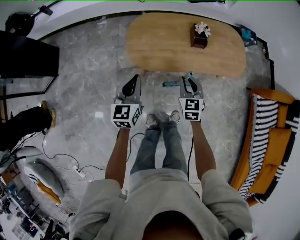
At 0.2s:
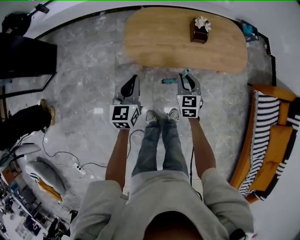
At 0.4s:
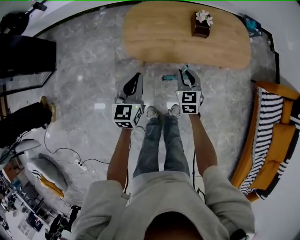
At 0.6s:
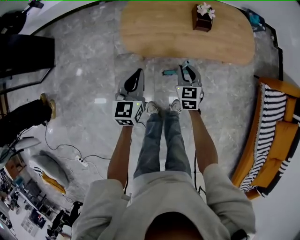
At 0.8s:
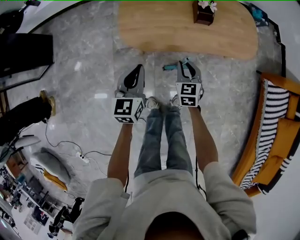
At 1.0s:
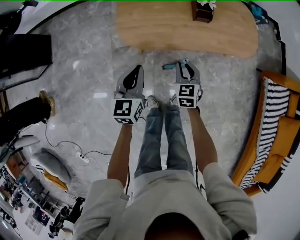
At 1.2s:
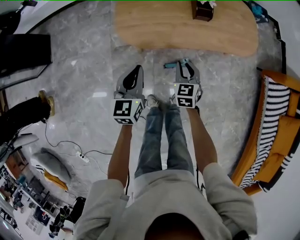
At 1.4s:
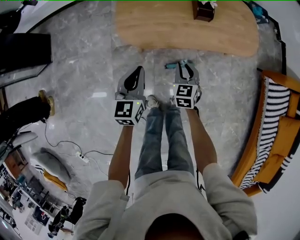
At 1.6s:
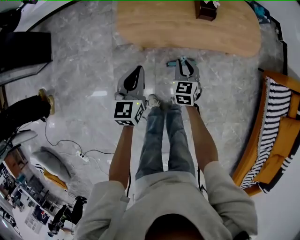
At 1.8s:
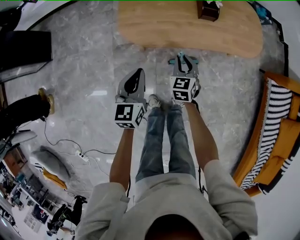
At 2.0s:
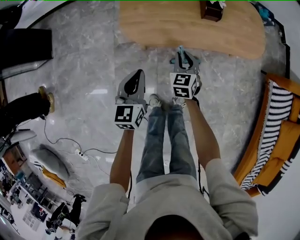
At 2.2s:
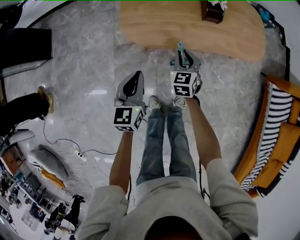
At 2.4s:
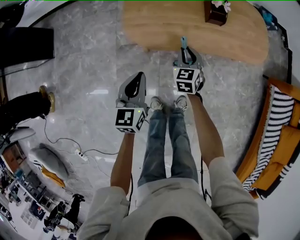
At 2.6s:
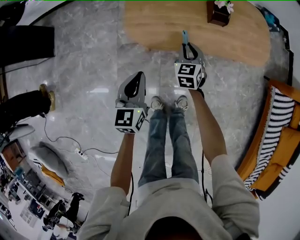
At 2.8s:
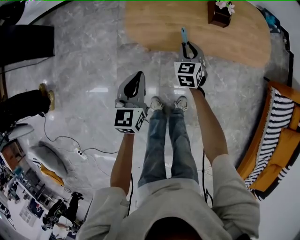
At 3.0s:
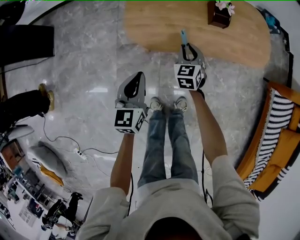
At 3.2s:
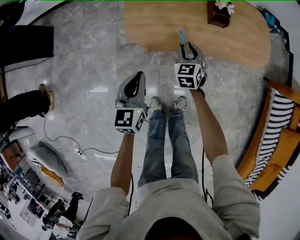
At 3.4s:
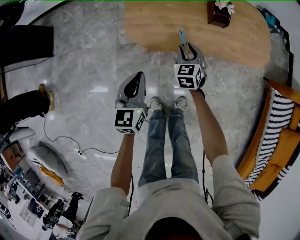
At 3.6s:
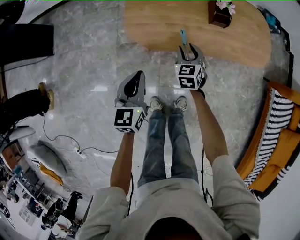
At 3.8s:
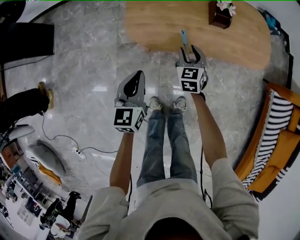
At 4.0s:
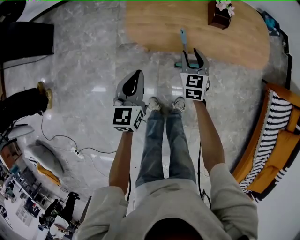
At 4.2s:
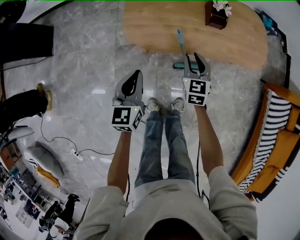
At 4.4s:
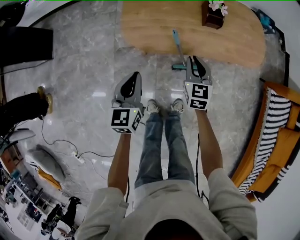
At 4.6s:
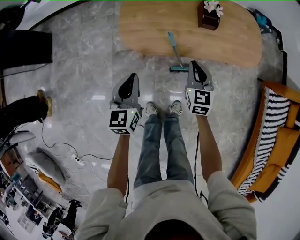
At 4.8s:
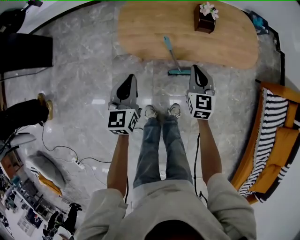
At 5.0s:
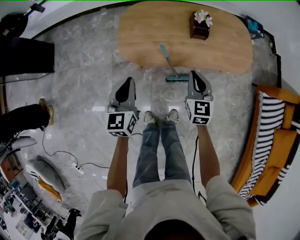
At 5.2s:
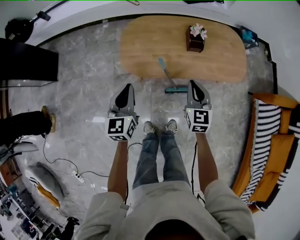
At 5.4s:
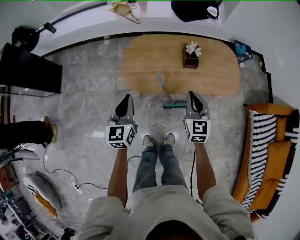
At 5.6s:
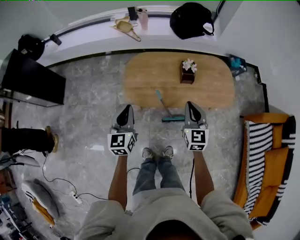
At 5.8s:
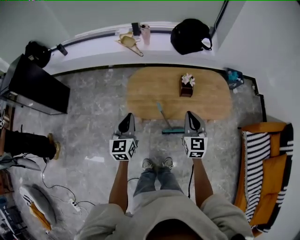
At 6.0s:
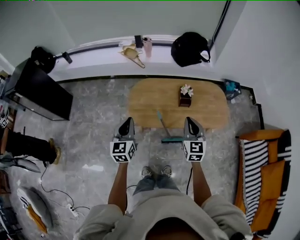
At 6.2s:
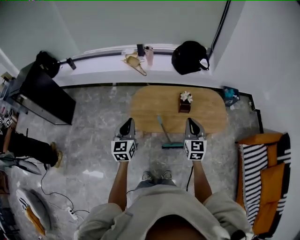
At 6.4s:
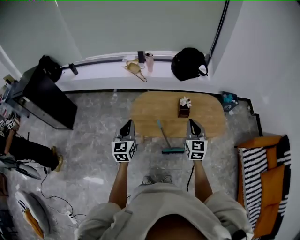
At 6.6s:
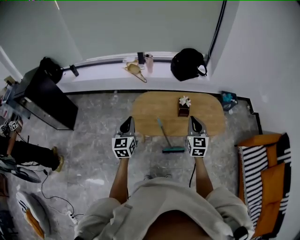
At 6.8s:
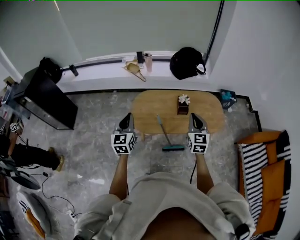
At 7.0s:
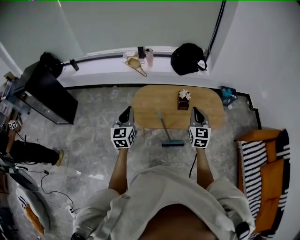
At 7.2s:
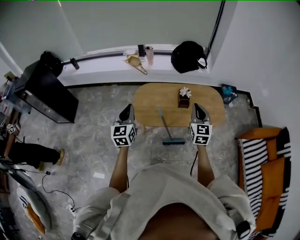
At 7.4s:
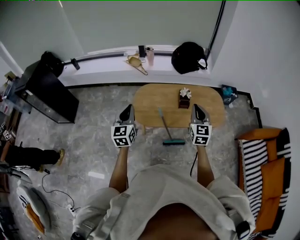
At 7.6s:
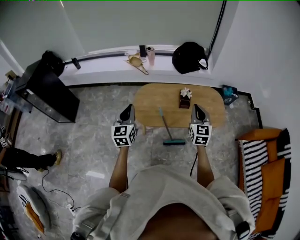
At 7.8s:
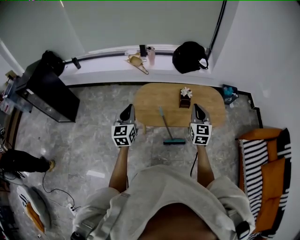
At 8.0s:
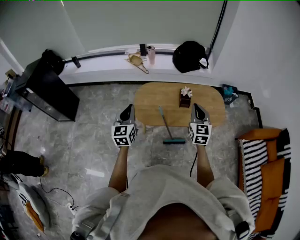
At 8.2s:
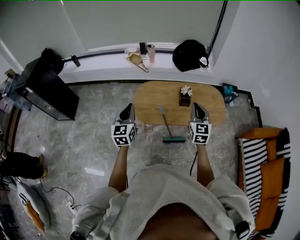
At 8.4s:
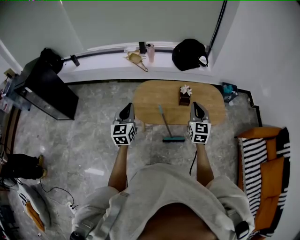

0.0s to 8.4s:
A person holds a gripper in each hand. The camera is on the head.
0.0s to 1.4s: The left gripper is displaced downward and to the right by about 10 cm, while the right gripper is displaced downward by some 10 cm.
1.4s to 2.8s: The right gripper travels forward by some 10 cm.
2.8s to 4.2s: The right gripper moves roughly 5 cm.
4.2s to 5.6s: Both grippers travel together upward, roughly 20 cm. The right gripper closes up.
5.6s to 7.0s: The grippers both shift upward by some 15 cm.
7.0s to 8.4s: Both grippers stay put.

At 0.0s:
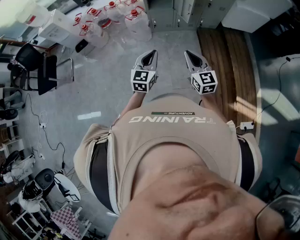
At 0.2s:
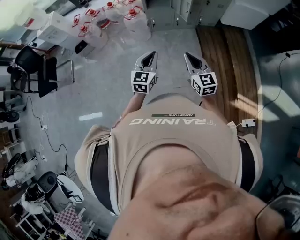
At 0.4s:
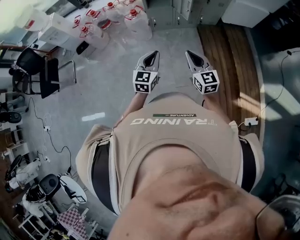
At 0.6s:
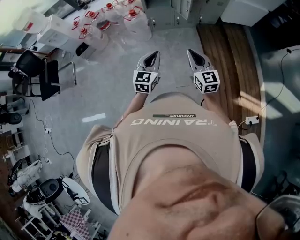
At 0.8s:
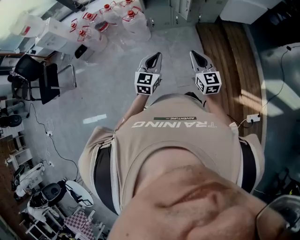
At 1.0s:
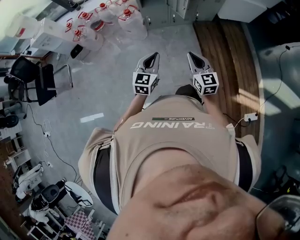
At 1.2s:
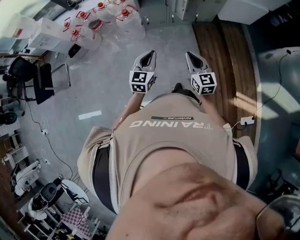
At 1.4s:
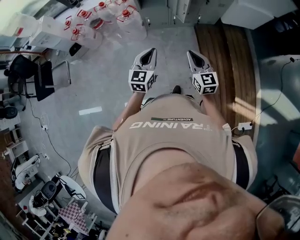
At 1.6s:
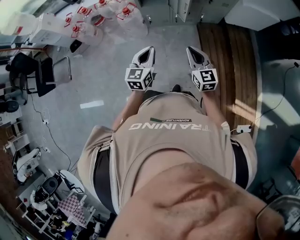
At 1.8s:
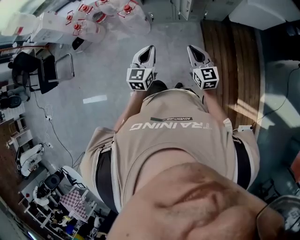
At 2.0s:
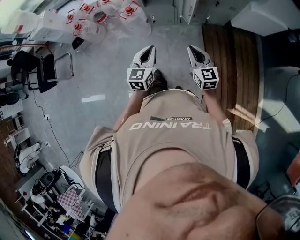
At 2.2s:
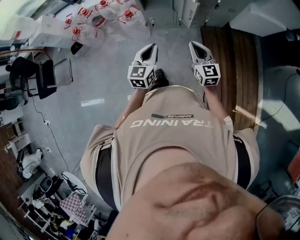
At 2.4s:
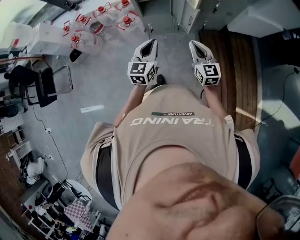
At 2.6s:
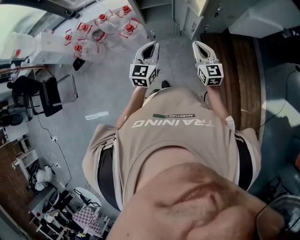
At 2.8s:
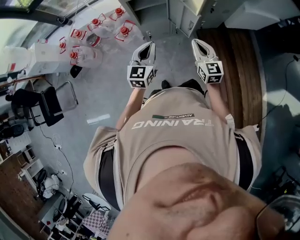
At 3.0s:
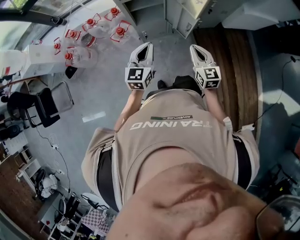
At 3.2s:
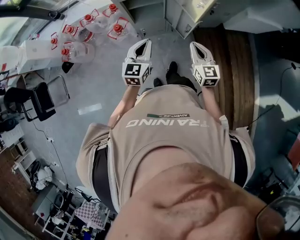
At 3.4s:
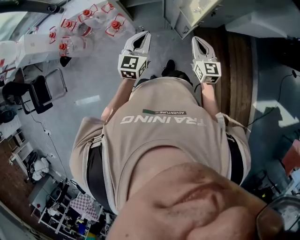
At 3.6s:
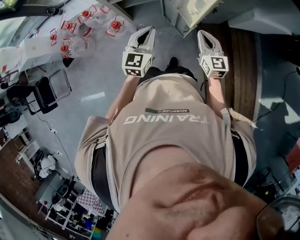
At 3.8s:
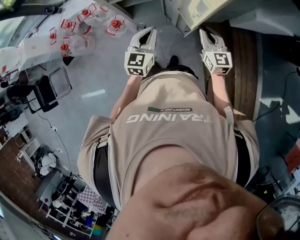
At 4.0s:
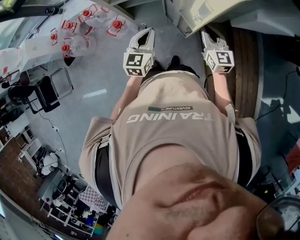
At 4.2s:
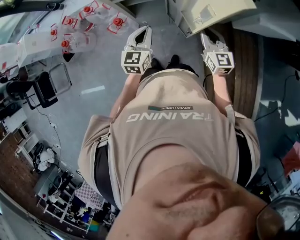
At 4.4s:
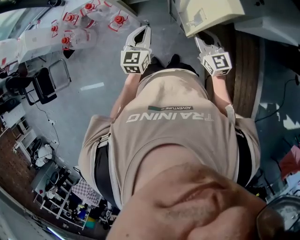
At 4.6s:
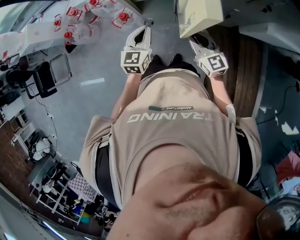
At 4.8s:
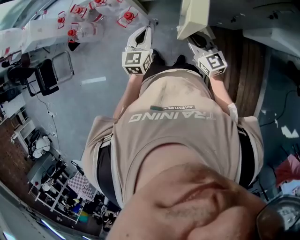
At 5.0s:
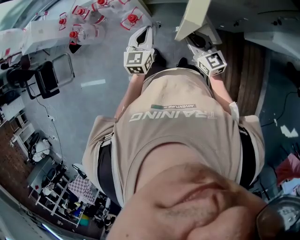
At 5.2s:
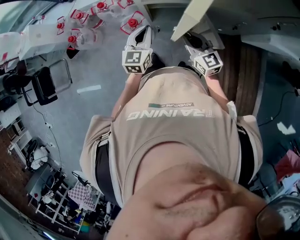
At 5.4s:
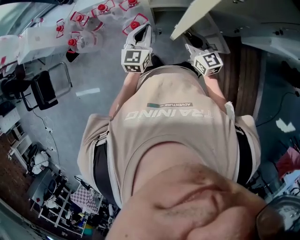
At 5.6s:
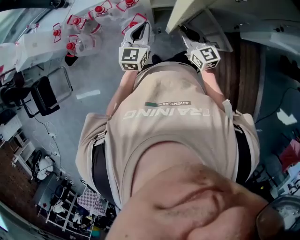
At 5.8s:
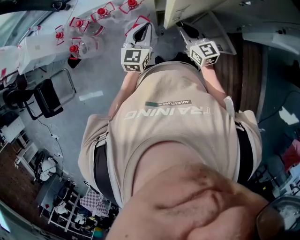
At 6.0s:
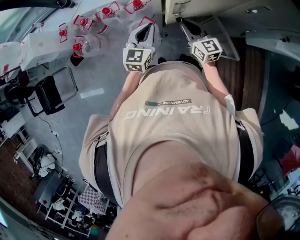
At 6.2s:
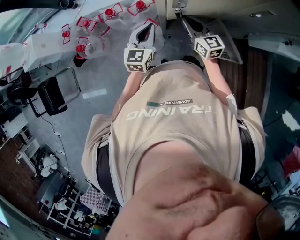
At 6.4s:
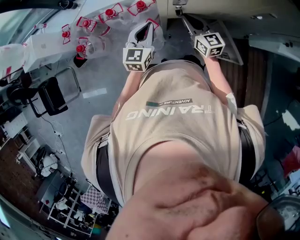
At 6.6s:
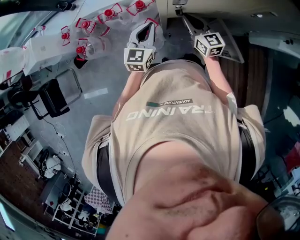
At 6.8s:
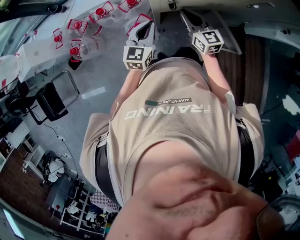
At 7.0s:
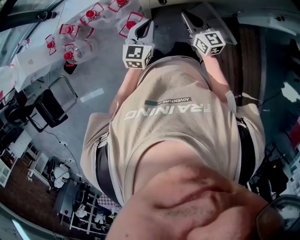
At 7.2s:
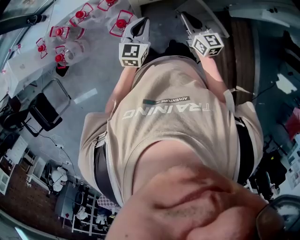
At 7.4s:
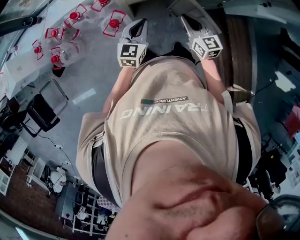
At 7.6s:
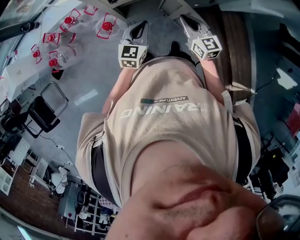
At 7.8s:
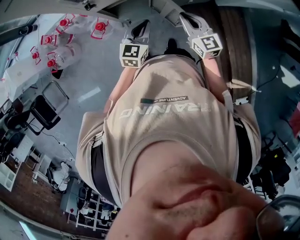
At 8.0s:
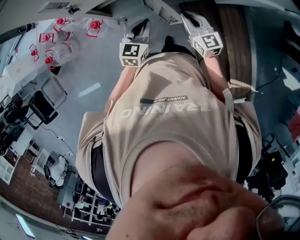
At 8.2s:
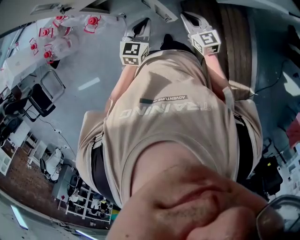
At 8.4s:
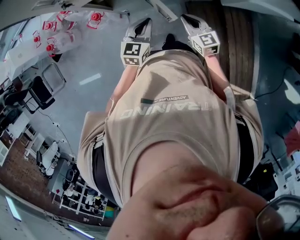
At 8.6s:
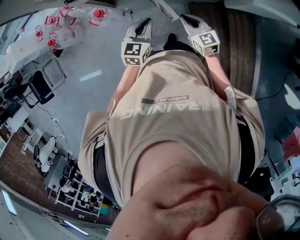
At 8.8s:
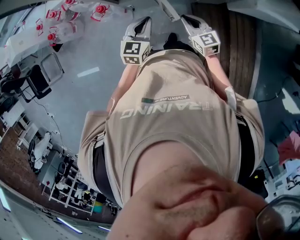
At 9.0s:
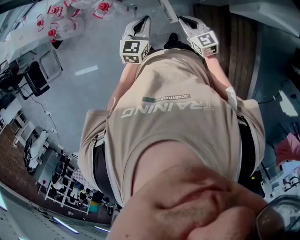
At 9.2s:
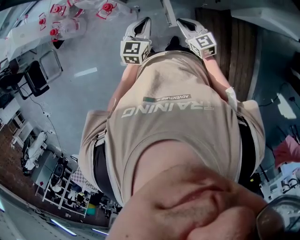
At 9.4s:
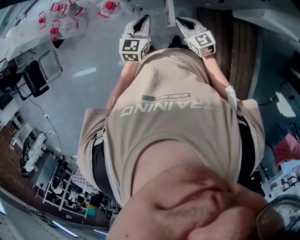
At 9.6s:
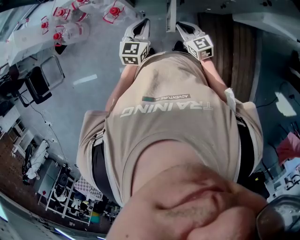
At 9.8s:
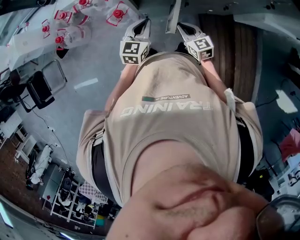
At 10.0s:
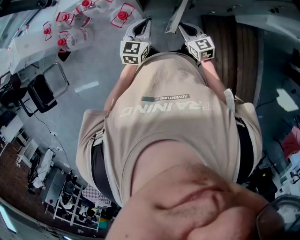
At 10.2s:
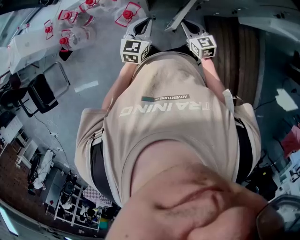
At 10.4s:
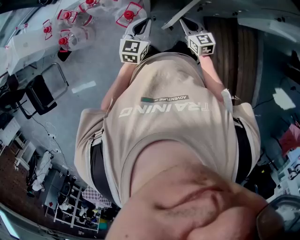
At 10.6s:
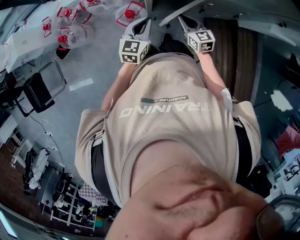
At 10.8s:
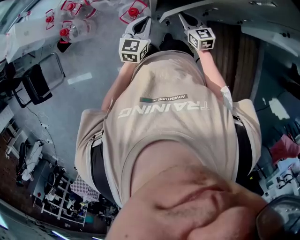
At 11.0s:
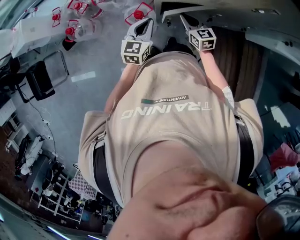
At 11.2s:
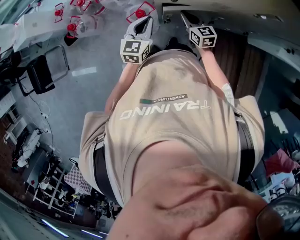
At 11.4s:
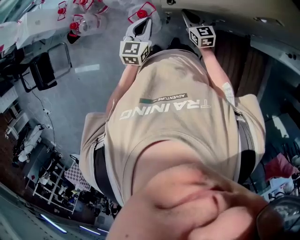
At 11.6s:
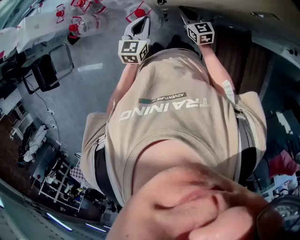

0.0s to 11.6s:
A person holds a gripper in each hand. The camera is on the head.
0.0s to 1.4s: The left gripper goes approximately 15 cm forward; the right gripper goes some 15 cm forward and to the right.
1.4s to 2.8s: Both grippers move forward, about 25 cm.
2.8s to 4.4s: Both grippers travel together forward, roughly 20 cm.
4.4s to 5.8s: Both grippers travel together to the left and forward, about 25 cm.
5.8s to 7.2s: The left gripper ends up some 5 cm from where it was, while the right gripper travels to the right by about 5 cm.
7.2s to 8.8s: The grippers both shift to the right by some 25 cm. The right gripper changes its angle by approximately 20 degrees.
8.8s to 10.2s: The grippers both shift to the left by about 25 cm.
10.2s to 11.6s: The left gripper shifts some 5 cm forward; the right gripper travels forward by some 15 cm.

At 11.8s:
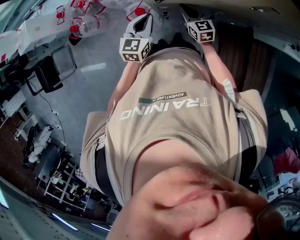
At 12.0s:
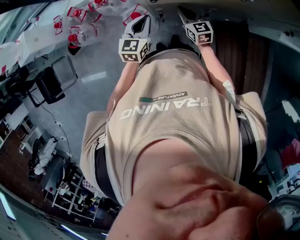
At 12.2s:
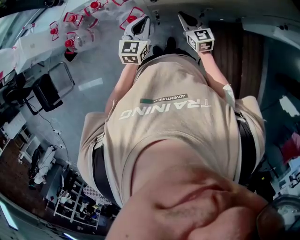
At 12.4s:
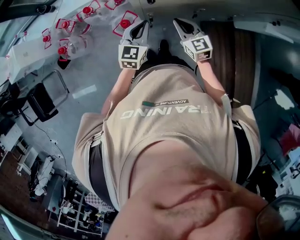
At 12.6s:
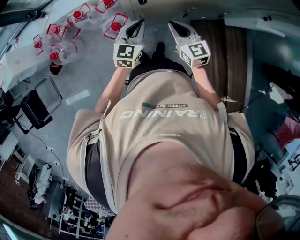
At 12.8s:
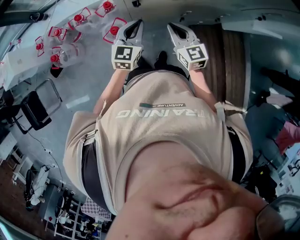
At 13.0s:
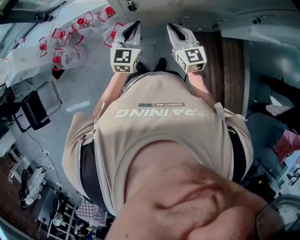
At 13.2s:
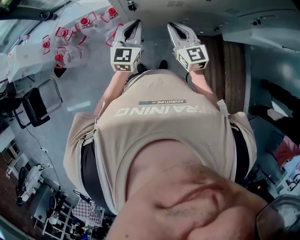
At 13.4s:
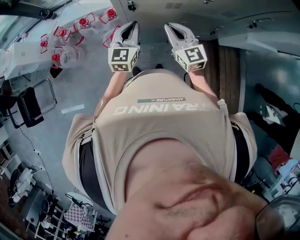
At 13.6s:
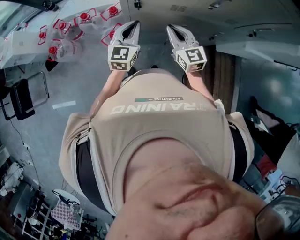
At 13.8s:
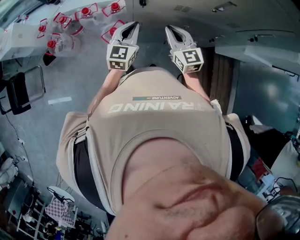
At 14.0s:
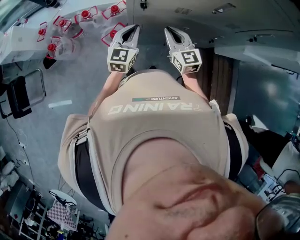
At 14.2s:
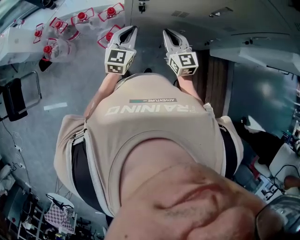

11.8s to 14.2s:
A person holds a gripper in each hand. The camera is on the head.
11.8s to 13.0s: The left gripper travels upward and to the right by roughly 10 cm. Meanwhile the right gripper moves upward and backward, some 20 cm.
13.0s to 14.2s: There are only small adjustments of the grippers.

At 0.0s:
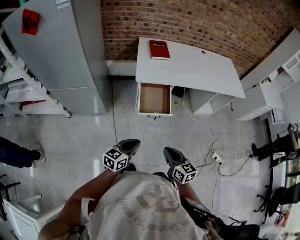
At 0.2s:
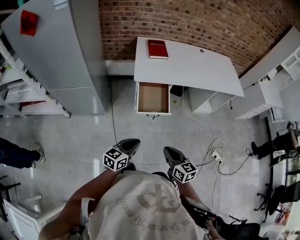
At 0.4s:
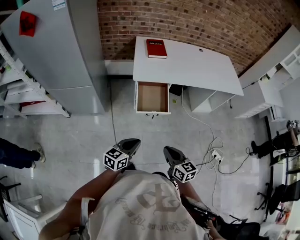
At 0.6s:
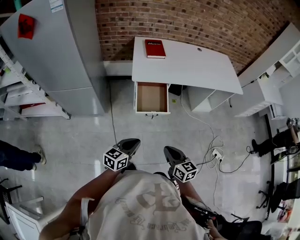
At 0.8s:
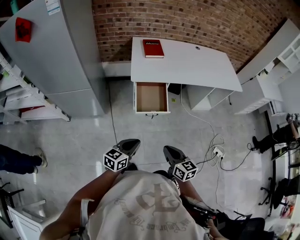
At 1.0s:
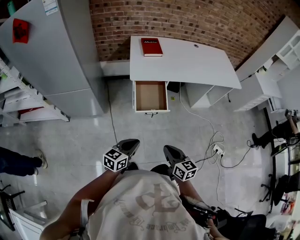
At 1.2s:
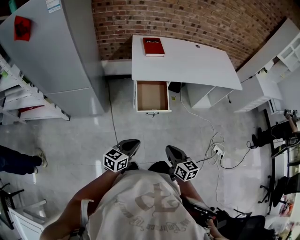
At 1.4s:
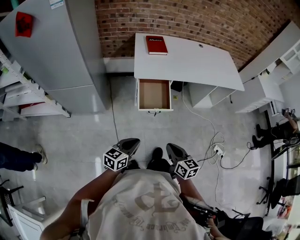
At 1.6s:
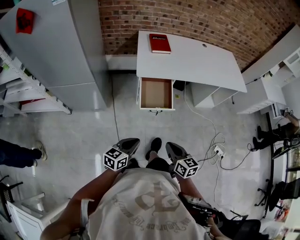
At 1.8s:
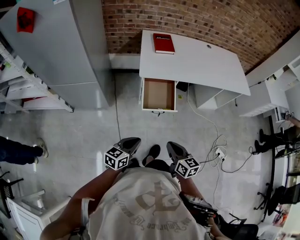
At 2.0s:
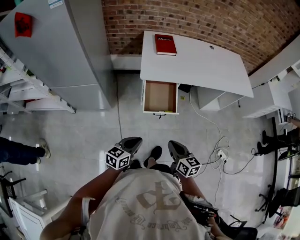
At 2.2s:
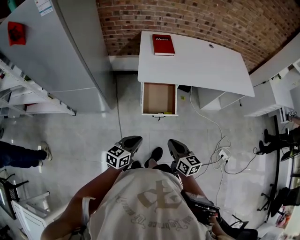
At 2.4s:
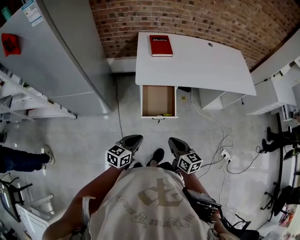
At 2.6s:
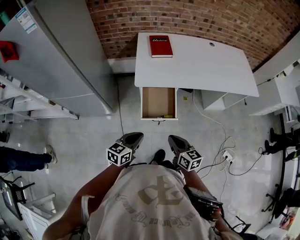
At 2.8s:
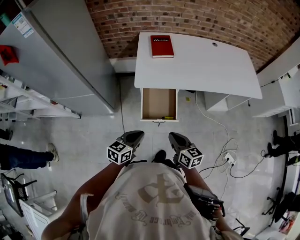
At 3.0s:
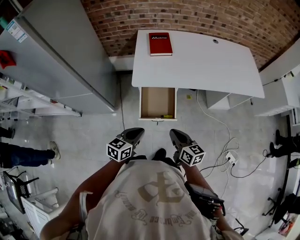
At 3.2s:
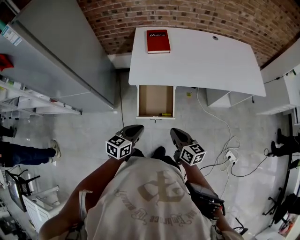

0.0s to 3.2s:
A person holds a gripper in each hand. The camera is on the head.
0.0s to 1.6s: The grippers make only small movements.
1.6s to 3.2s: The grippers both shift forward and to the right by some 25 cm.
